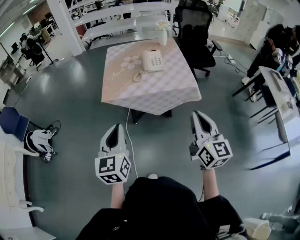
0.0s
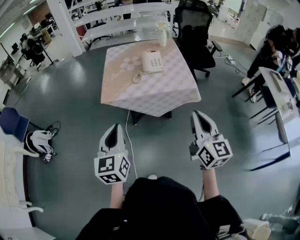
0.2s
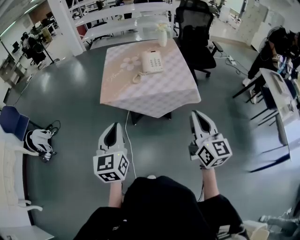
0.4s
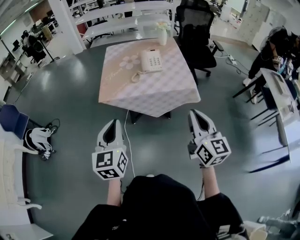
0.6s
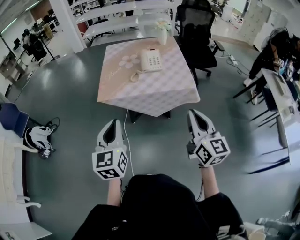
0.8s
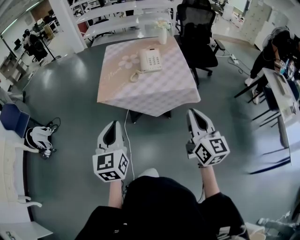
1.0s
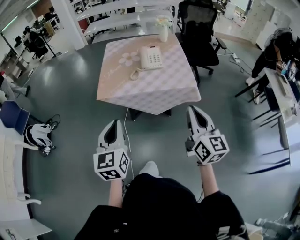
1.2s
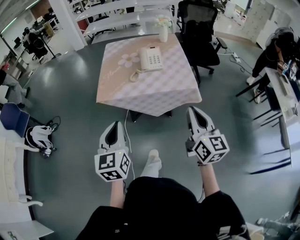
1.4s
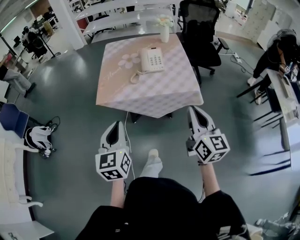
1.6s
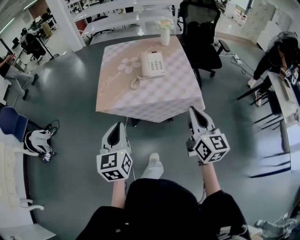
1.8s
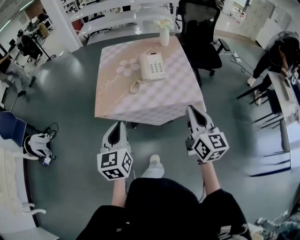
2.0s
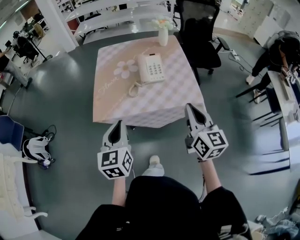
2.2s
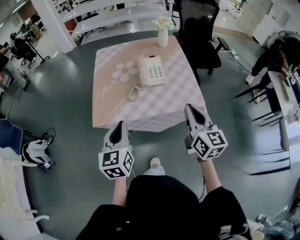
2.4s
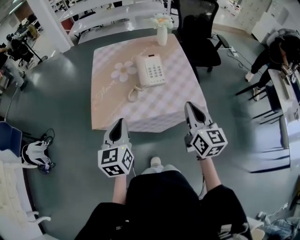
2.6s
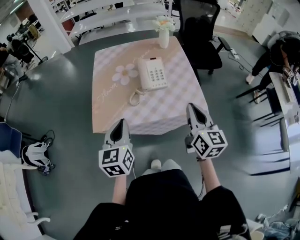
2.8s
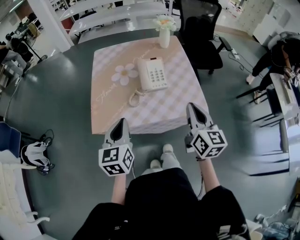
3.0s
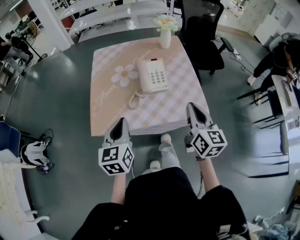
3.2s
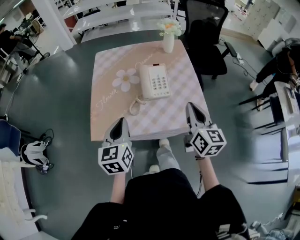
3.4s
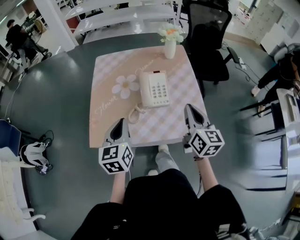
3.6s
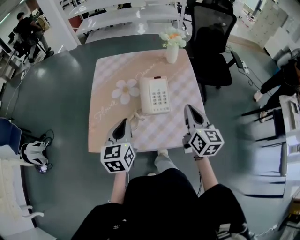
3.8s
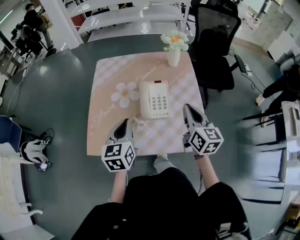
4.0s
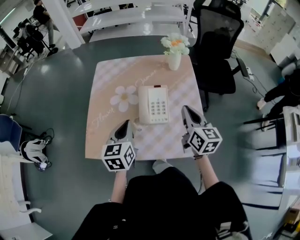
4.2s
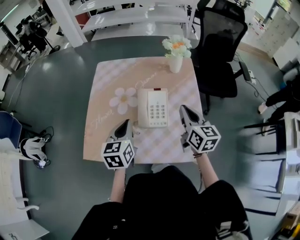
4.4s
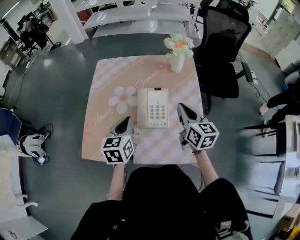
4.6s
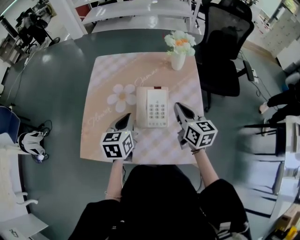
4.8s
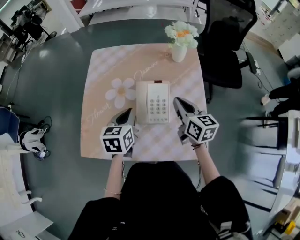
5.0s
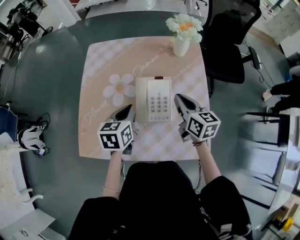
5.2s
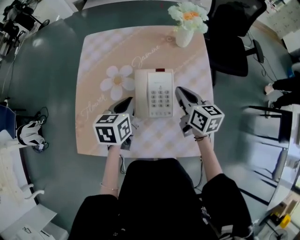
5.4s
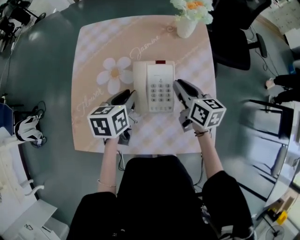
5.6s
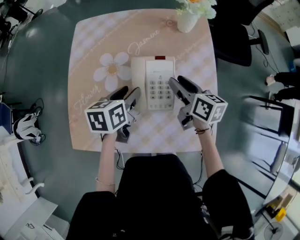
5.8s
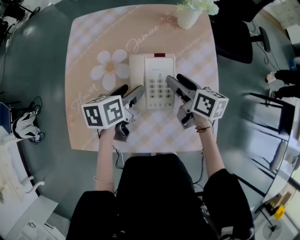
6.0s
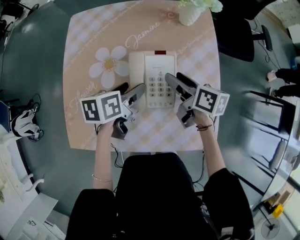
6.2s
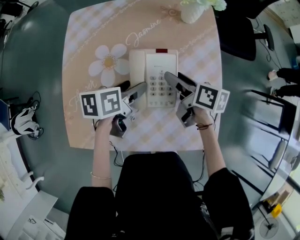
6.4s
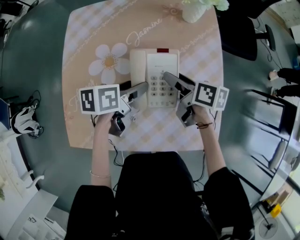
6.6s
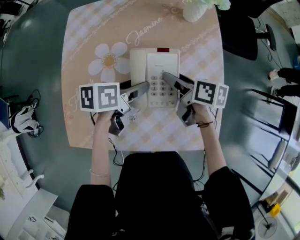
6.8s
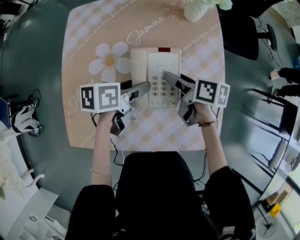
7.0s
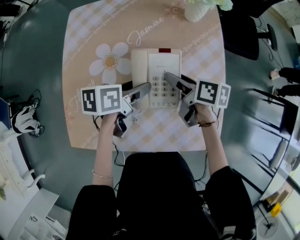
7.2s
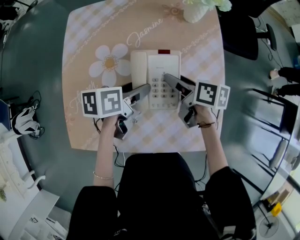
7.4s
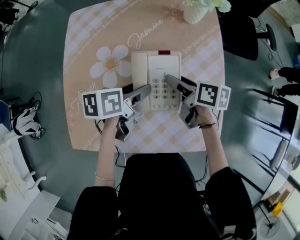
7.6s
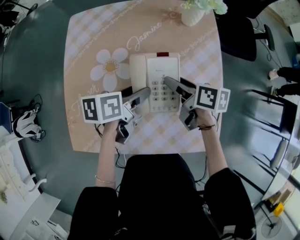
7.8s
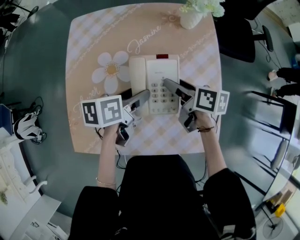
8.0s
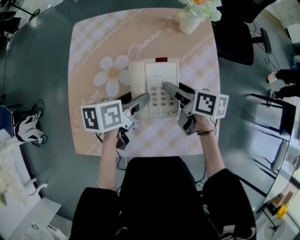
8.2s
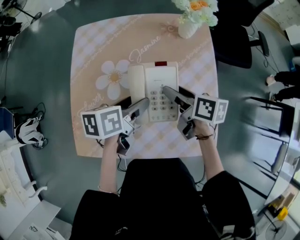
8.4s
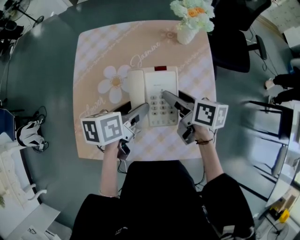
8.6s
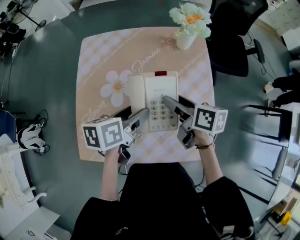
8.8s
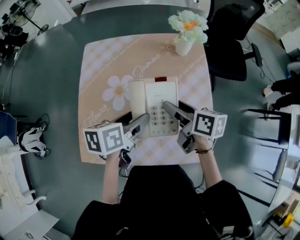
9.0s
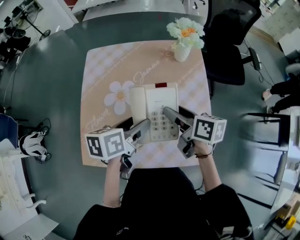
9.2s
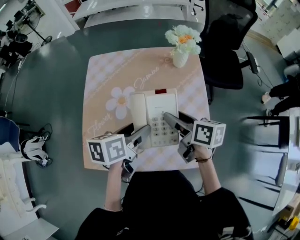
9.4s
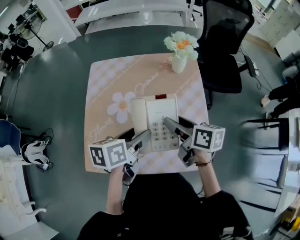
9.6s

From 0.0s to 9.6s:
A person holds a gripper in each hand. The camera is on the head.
From 0.0s to 1.6s: The grippers both shift forward by roughly 10 cm.
From 1.6s to 3.2s: Both grippers move forward, some 25 cm.
From 3.2s to 4.8s: The grippers both shift forward by roughly 25 cm. The right gripper rotates some 20 degrees.
From 4.8s to 6.4s: Both grippers move downward and forward, approximately 15 cm. The left gripper swivels roughly 40 degrees, and opens up; the right gripper rotates roughly 40 degrees, and opens up.
From 6.4s to 8.0s: The grippers make only small movements.
From 8.0s to 9.6s: Both grippers move upward and backward, about 15 cm.

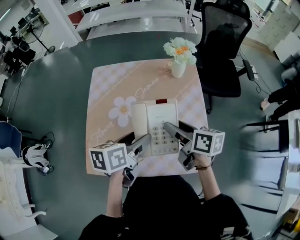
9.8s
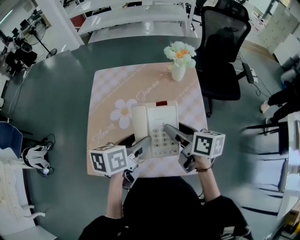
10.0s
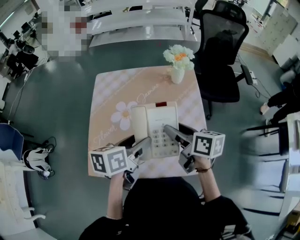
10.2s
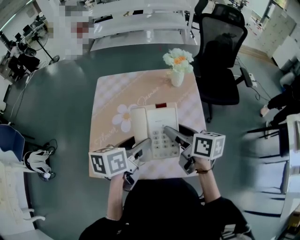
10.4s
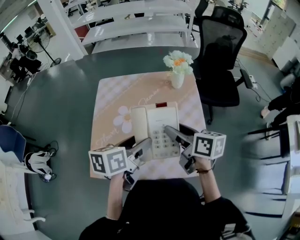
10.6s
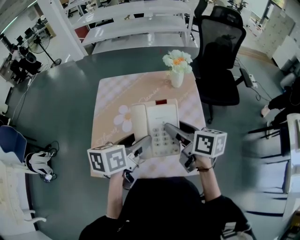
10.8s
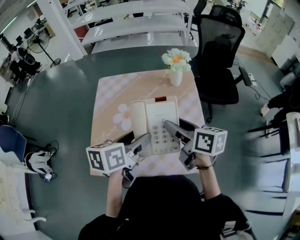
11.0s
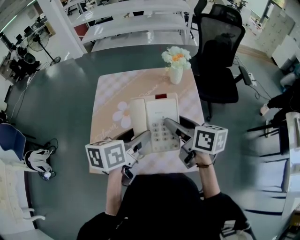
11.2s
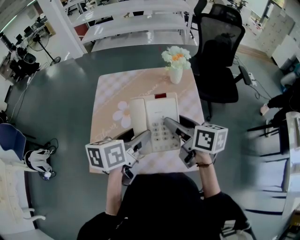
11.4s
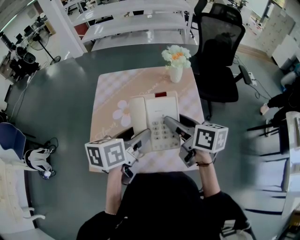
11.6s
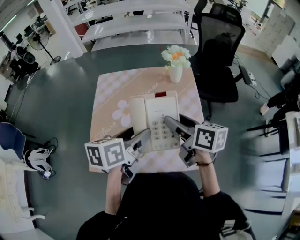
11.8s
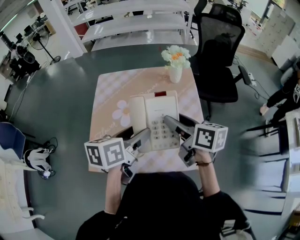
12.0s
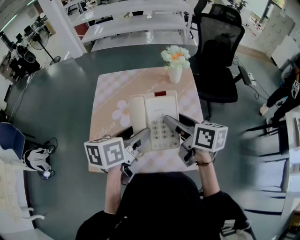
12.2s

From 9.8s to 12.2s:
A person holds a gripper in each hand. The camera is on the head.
From 9.8s to 11.0s: Both grippers move upward, roughly 5 cm.
From 11.0s to 12.2s: Both grippers stay put.

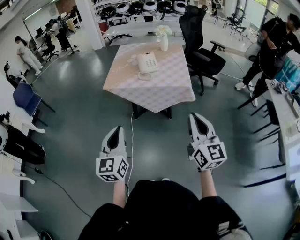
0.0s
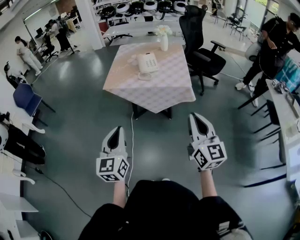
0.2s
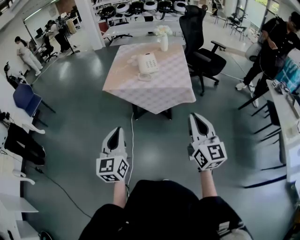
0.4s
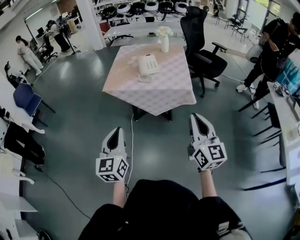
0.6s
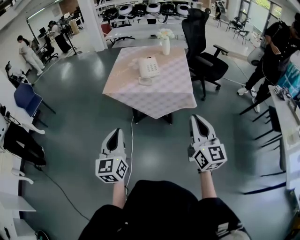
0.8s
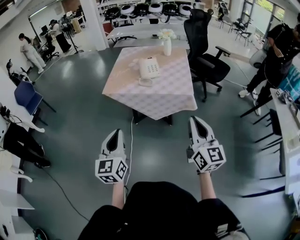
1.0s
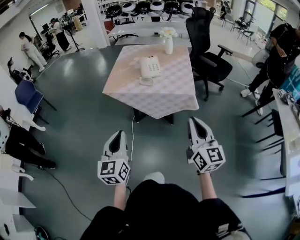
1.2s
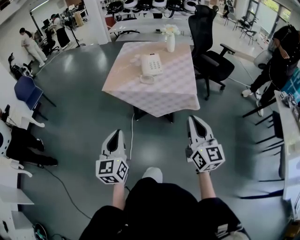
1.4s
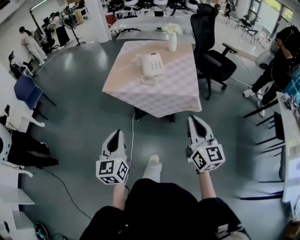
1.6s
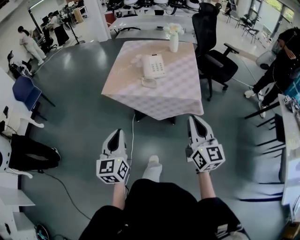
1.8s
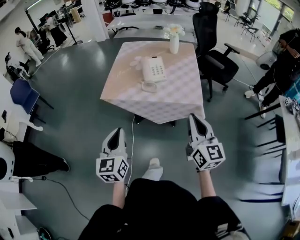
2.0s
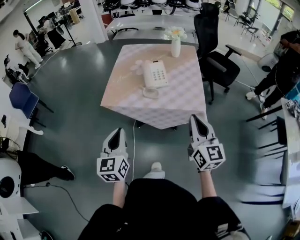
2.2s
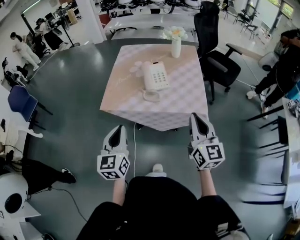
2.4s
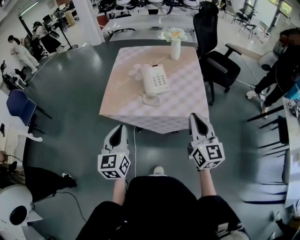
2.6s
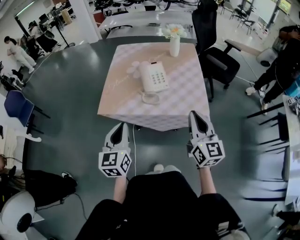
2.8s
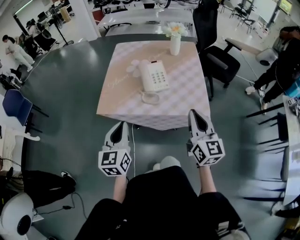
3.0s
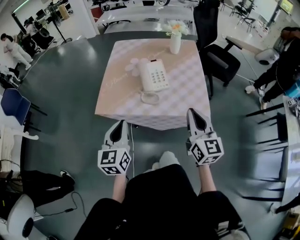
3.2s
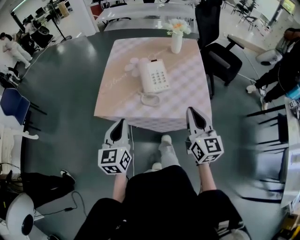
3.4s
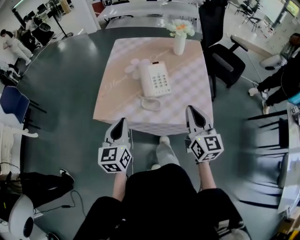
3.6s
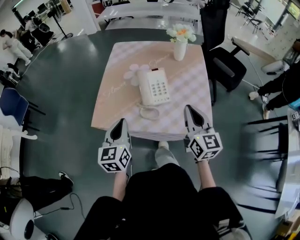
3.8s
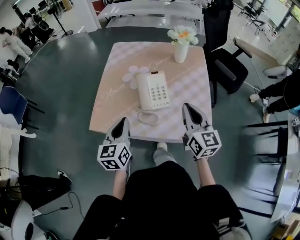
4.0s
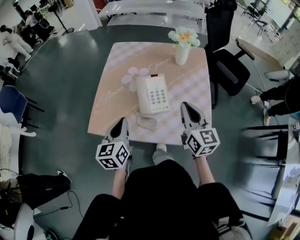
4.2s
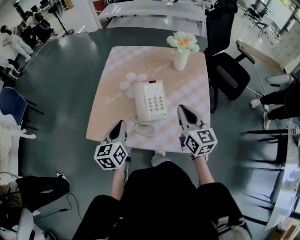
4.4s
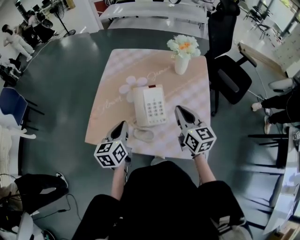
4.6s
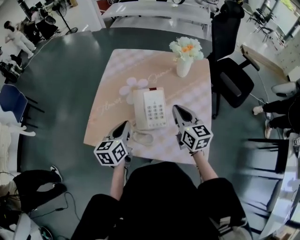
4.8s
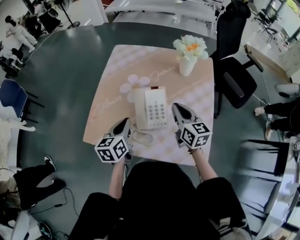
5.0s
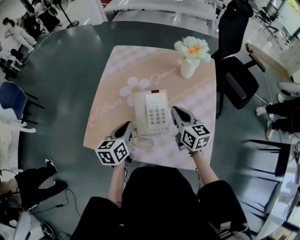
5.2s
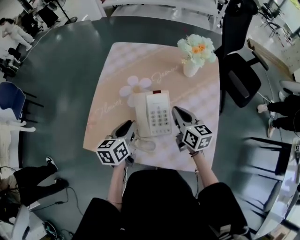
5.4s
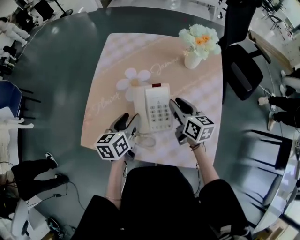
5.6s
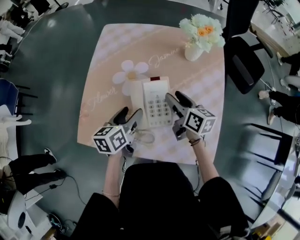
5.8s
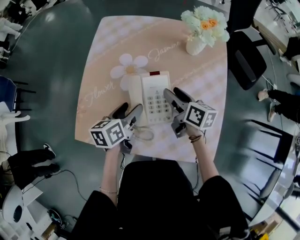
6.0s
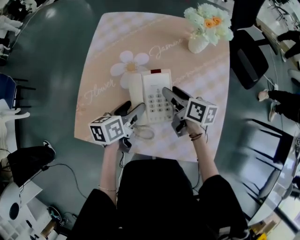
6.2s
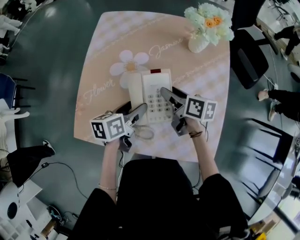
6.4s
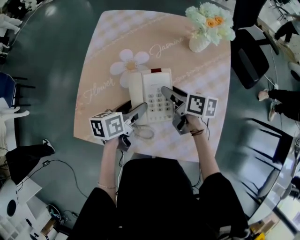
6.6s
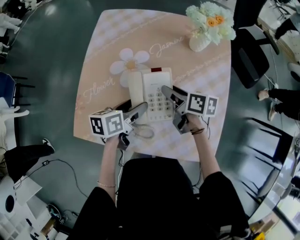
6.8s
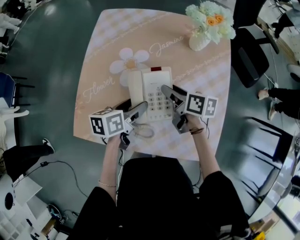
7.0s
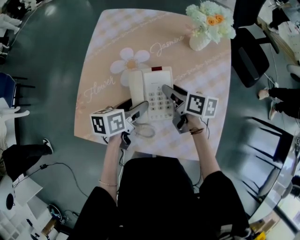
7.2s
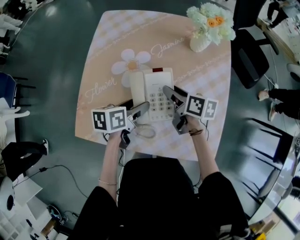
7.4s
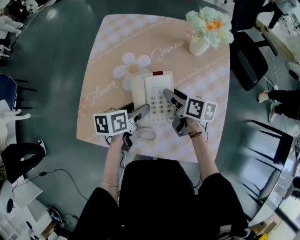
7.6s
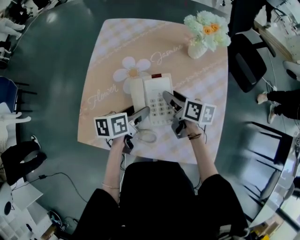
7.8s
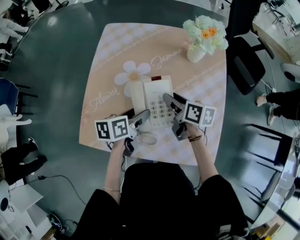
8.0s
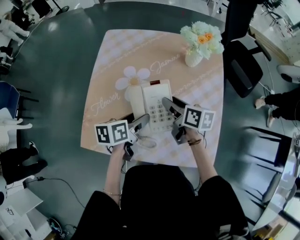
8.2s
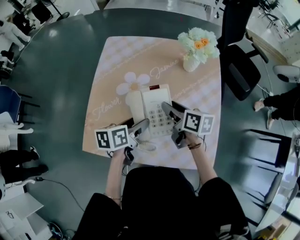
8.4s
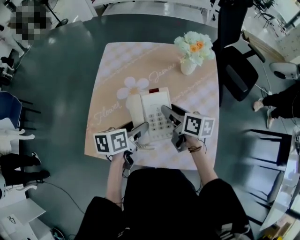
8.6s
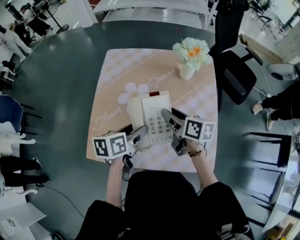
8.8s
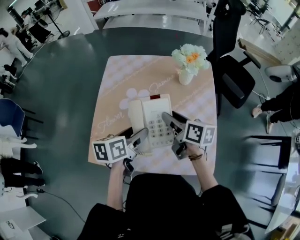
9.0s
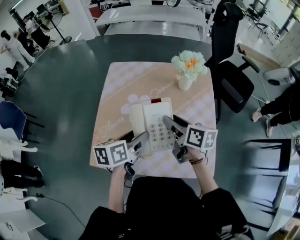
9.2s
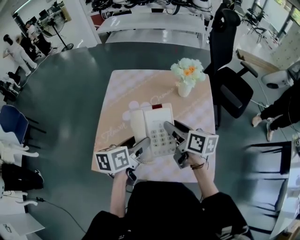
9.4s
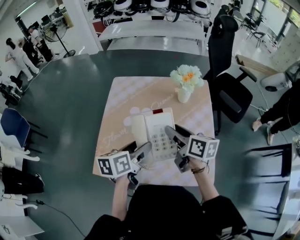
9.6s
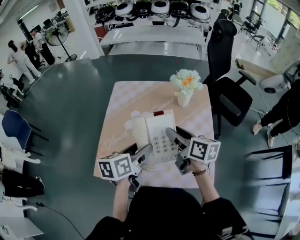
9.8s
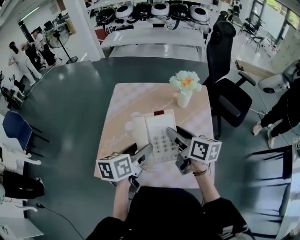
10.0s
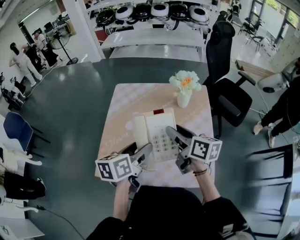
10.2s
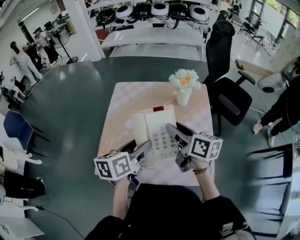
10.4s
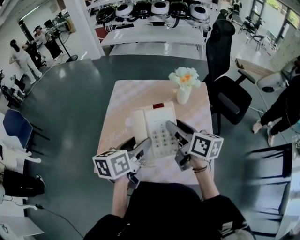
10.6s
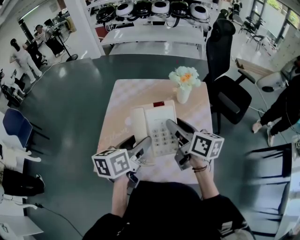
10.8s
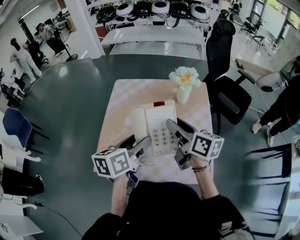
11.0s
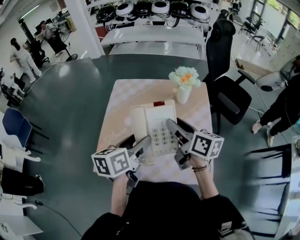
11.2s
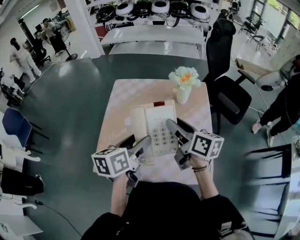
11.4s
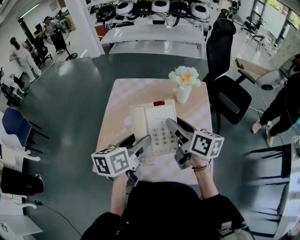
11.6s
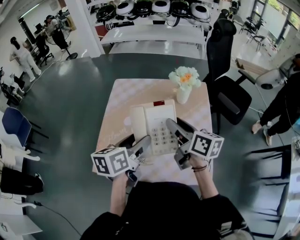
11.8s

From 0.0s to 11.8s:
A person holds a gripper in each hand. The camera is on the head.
From 0.0s to 1.4s: The grippers both shift forward by roughly 10 cm.
From 1.4s to 3.0s: The grippers both shift forward by some 25 cm.
From 3.0s to 4.4s: The two grippers go roughly 25 cm forward.
From 4.4s to 6.0s: The right gripper heads downward and forward, covering roughly 20 cm, rotates roughly 40 degrees, and opens its fingers, while the left gripper travels forward, downward and to the right by roughly 20 cm, turns by about 30 degrees, and opens up.
From 6.0s to 7.4s: The grippers make only small movements.
From 7.4s to 8.8s: Both grippers move upward, approximately 10 cm.
From 8.8s to 10.4s: Both grippers travel together upward, some 10 cm.
From 10.4s to 11.8s: There are only small adjustments of the grippers.
